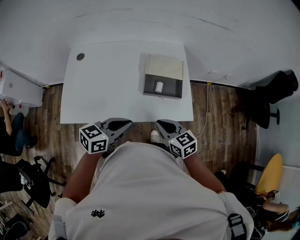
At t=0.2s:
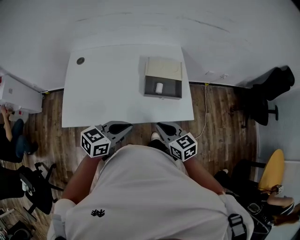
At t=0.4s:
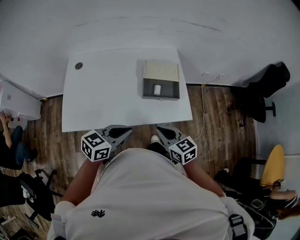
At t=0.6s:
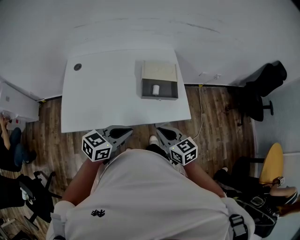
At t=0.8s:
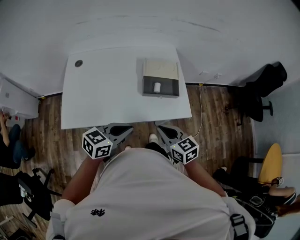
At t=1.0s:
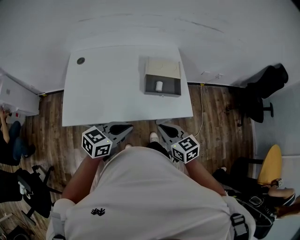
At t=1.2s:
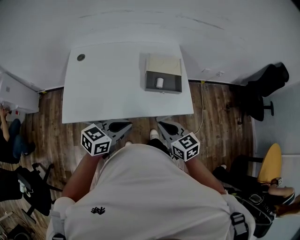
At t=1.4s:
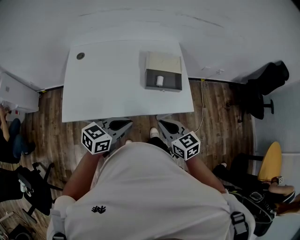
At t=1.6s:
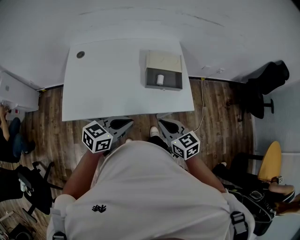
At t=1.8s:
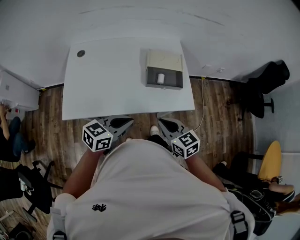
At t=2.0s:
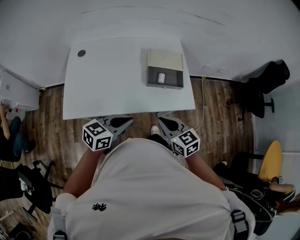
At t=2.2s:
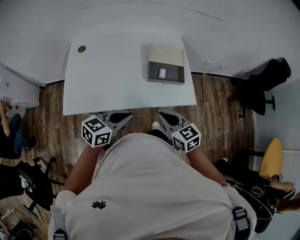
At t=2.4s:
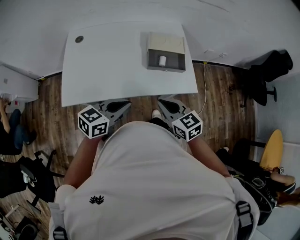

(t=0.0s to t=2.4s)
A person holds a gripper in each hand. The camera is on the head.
t=0.0s - t=1.2s: The right gripper moves approximately 5 cm. The left gripper moves some 5 cm.
t=1.2s - t=2.4s: The grippers make only small movements.

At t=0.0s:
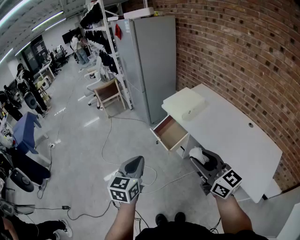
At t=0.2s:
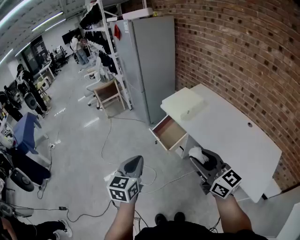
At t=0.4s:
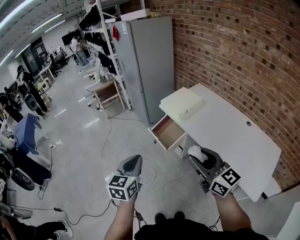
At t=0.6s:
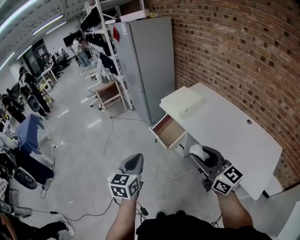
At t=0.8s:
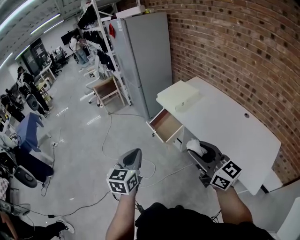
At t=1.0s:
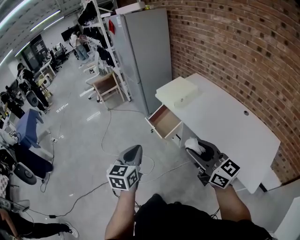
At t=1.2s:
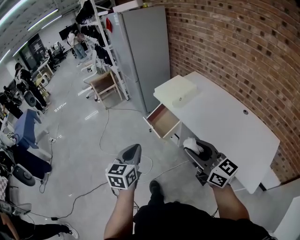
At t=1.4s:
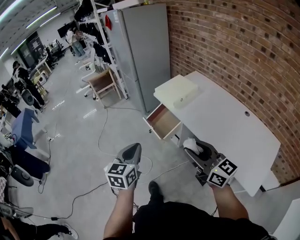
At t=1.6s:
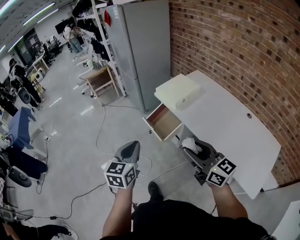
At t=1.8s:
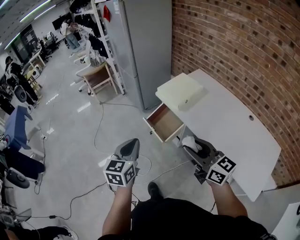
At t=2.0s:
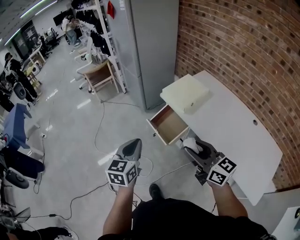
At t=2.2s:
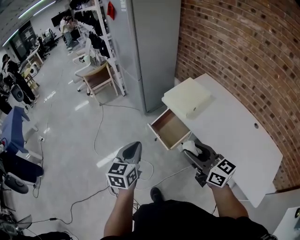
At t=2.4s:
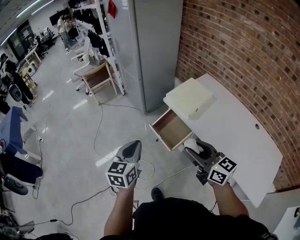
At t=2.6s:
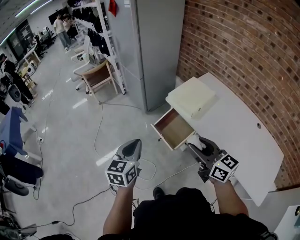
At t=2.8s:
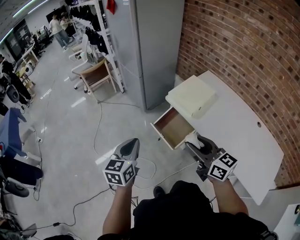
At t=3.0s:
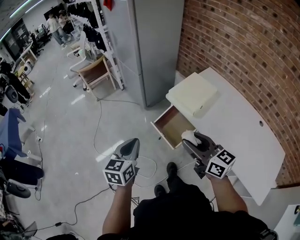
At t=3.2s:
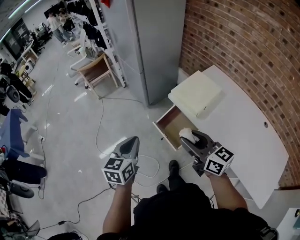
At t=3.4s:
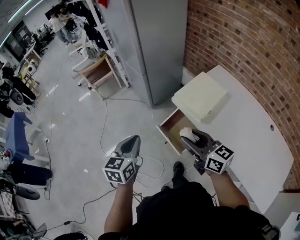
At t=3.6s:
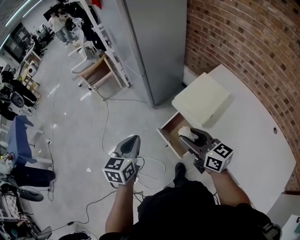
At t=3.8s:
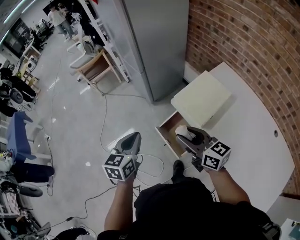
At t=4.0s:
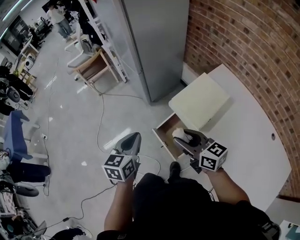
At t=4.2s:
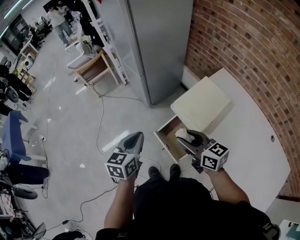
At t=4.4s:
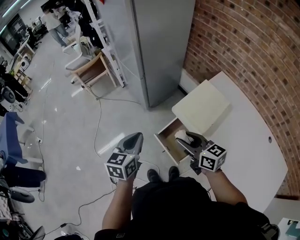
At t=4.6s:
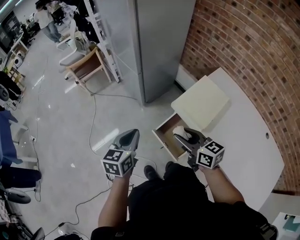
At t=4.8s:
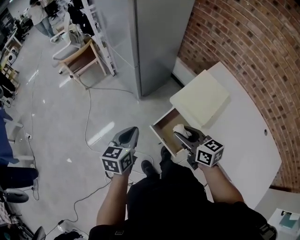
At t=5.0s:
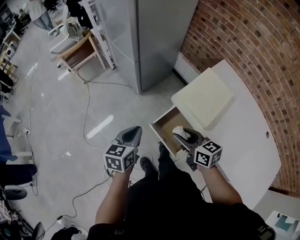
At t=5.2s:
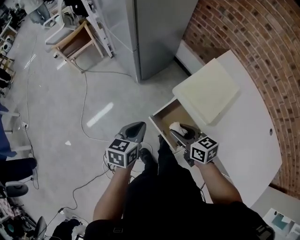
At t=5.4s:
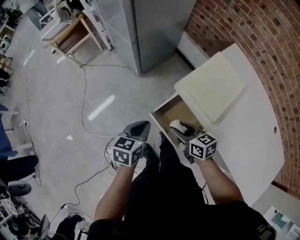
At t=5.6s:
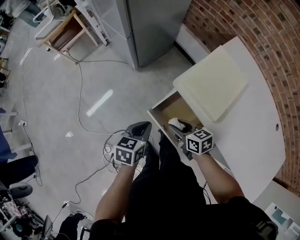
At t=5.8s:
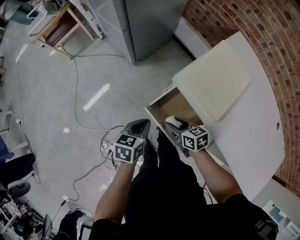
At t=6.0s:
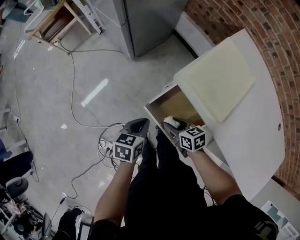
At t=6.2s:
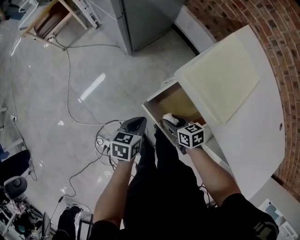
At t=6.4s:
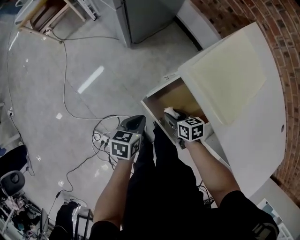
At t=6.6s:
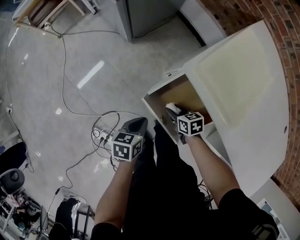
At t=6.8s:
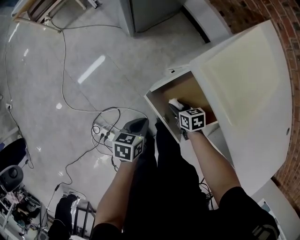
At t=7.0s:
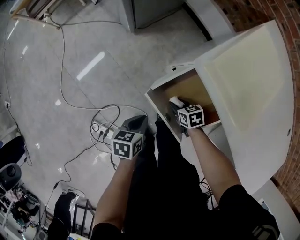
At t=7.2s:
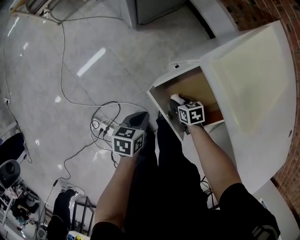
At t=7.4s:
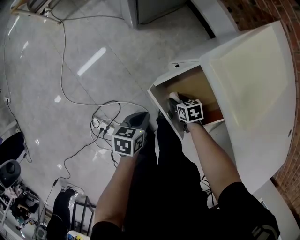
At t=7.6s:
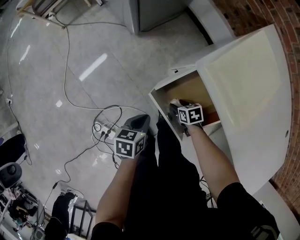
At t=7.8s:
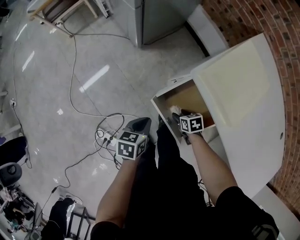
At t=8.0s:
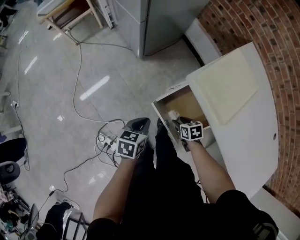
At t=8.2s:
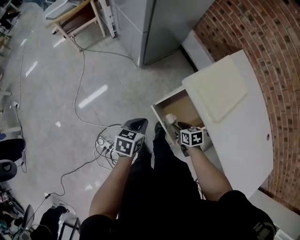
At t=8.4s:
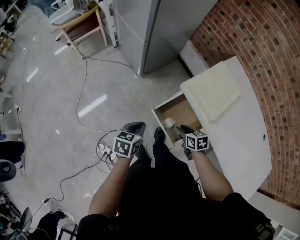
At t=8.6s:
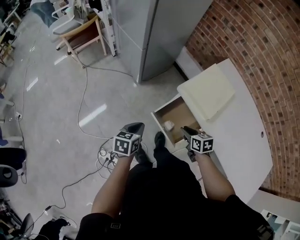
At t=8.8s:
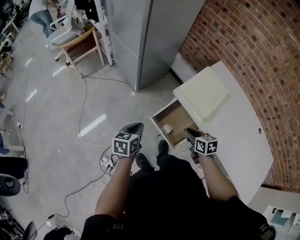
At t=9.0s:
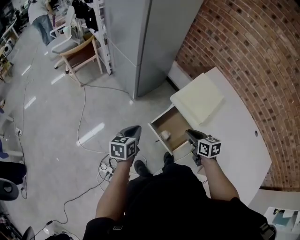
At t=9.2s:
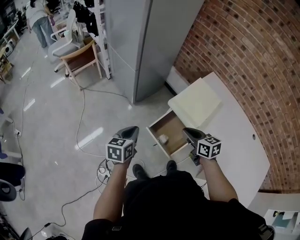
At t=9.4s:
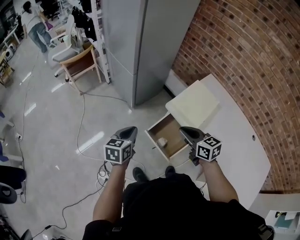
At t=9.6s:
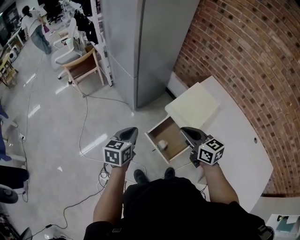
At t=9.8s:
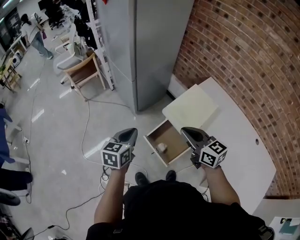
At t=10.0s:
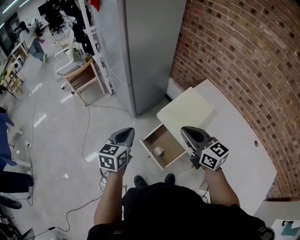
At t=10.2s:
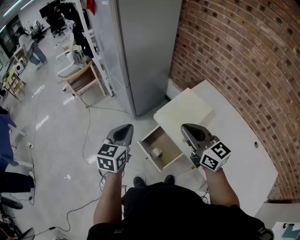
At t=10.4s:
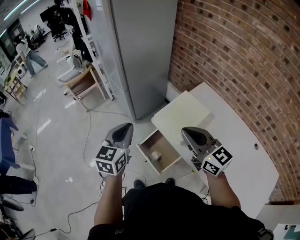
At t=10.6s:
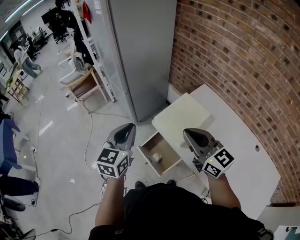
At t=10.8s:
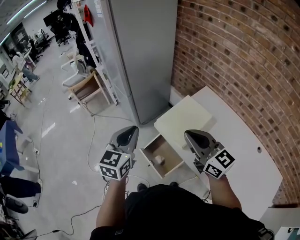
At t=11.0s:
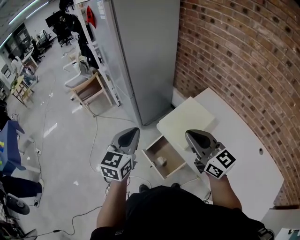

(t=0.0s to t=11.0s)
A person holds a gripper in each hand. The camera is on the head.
t=0.0s - t=1.6s: The right gripper moves roughly 5 cm. Meanwhile the left gripper shifts about 5 cm forward.
t=1.6s - t=3.2s: Both grippers travel together forward, roughly 25 cm.
t=3.2s - t=4.8s: The left gripper goes about 15 cm forward; the right gripper shifts about 20 cm forward and downward.
t=4.8s - t=6.2s: Both grippers travel together downward, approximately 30 cm. The right gripper rotates roughly 30 degrees; the left gripper swivels roughly 30 degrees.
t=6.2s - t=7.8s: The right gripper shifts approximately 10 cm downward. The left gripper goes downward and returns, about 10 cm each way.
t=7.8s - t=9.4s: The left gripper moves upward, about 25 cm, and rotates about 30 degrees; the right gripper heads upward, covering roughly 40 cm, tips its fingers upward by roughly 40 degrees, and closes.
t=9.4s - t=11.0s: The grippers both shift upward and to the right by about 20 cm. The right gripper swivels about 30 degrees. The left gripper rotates about 30 degrees.

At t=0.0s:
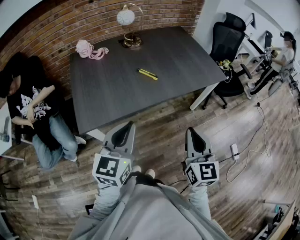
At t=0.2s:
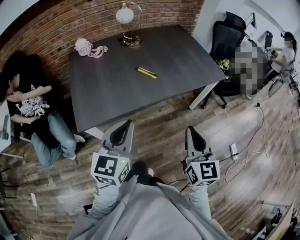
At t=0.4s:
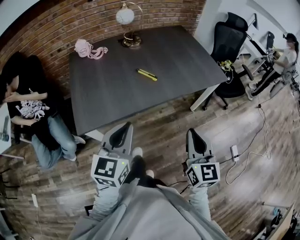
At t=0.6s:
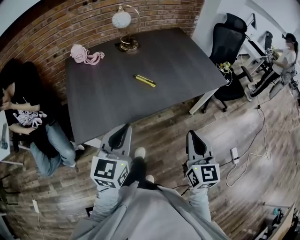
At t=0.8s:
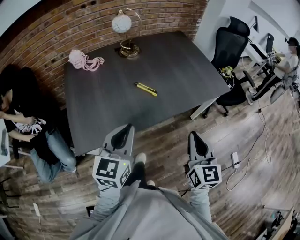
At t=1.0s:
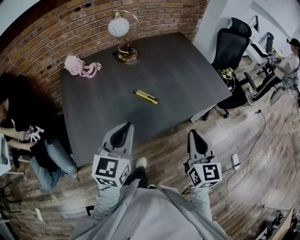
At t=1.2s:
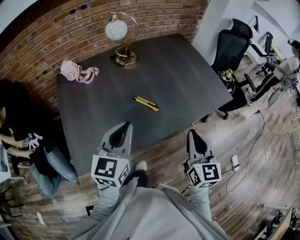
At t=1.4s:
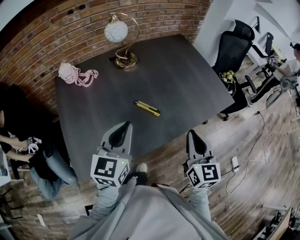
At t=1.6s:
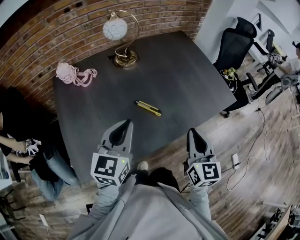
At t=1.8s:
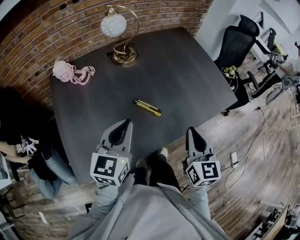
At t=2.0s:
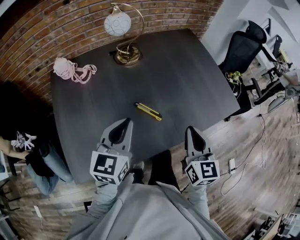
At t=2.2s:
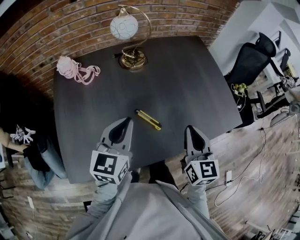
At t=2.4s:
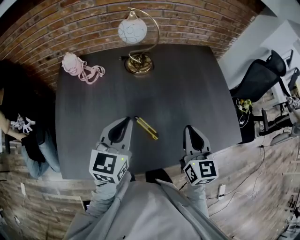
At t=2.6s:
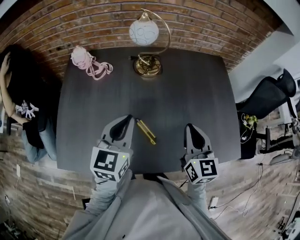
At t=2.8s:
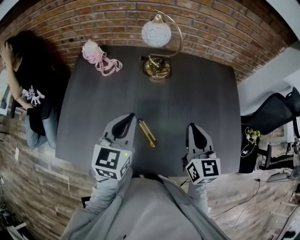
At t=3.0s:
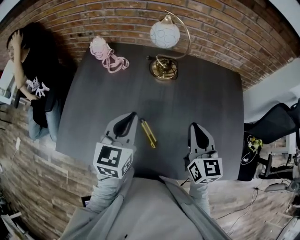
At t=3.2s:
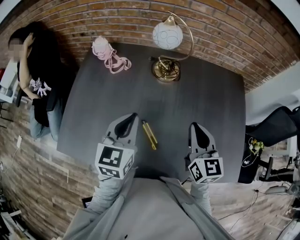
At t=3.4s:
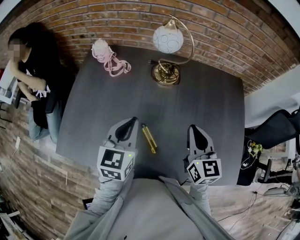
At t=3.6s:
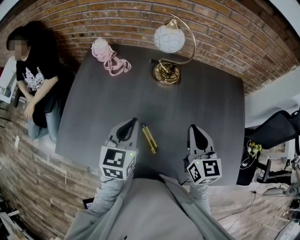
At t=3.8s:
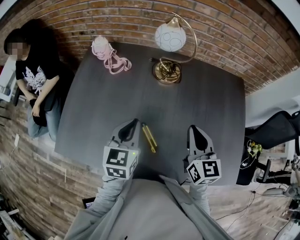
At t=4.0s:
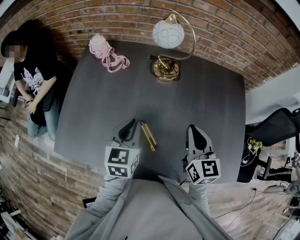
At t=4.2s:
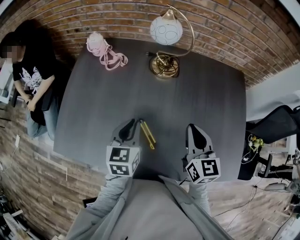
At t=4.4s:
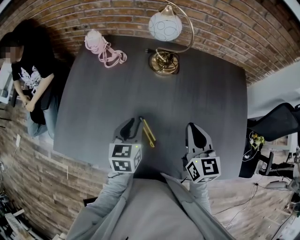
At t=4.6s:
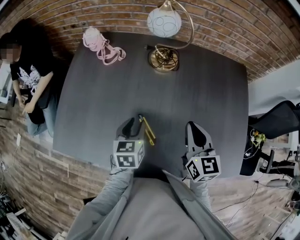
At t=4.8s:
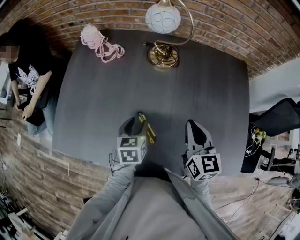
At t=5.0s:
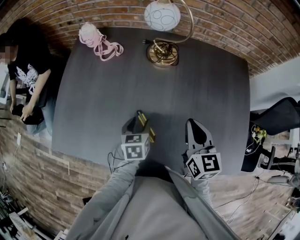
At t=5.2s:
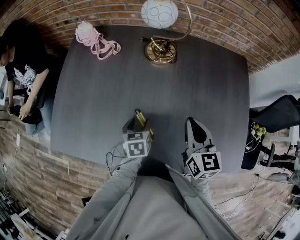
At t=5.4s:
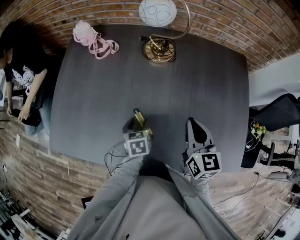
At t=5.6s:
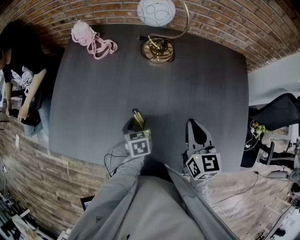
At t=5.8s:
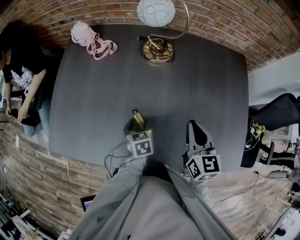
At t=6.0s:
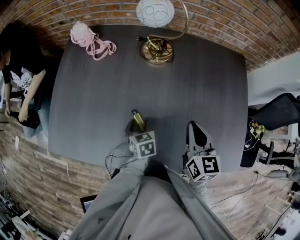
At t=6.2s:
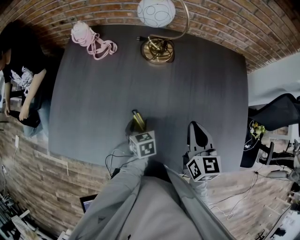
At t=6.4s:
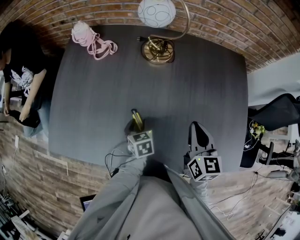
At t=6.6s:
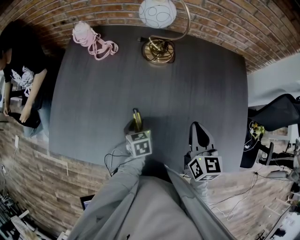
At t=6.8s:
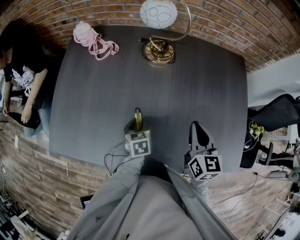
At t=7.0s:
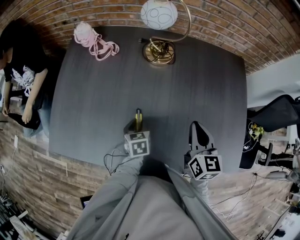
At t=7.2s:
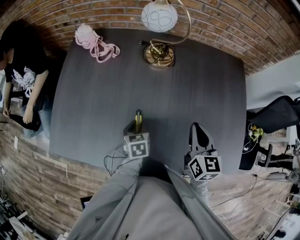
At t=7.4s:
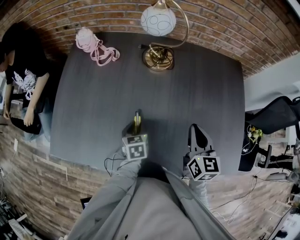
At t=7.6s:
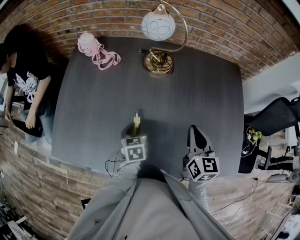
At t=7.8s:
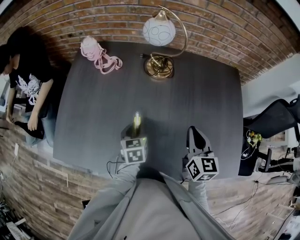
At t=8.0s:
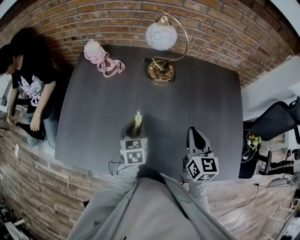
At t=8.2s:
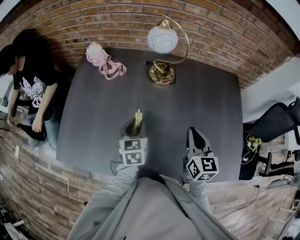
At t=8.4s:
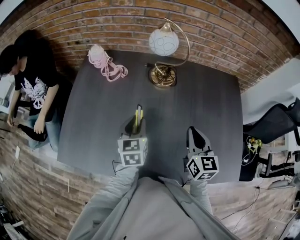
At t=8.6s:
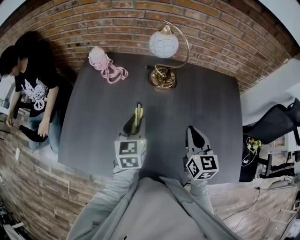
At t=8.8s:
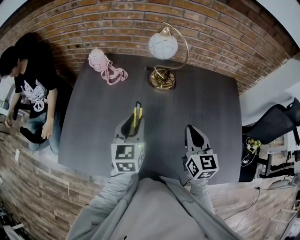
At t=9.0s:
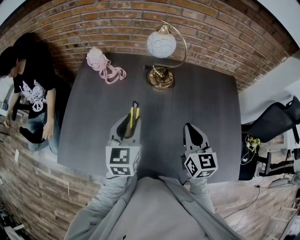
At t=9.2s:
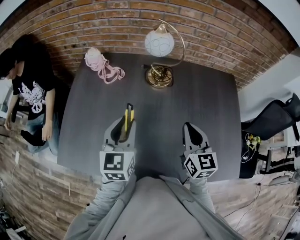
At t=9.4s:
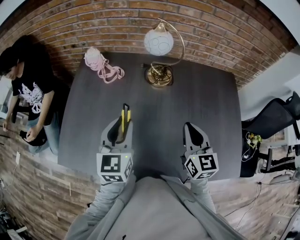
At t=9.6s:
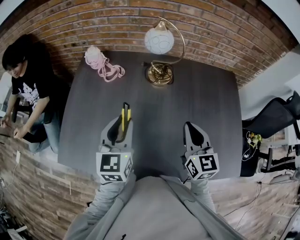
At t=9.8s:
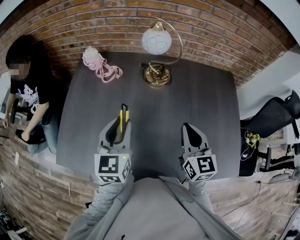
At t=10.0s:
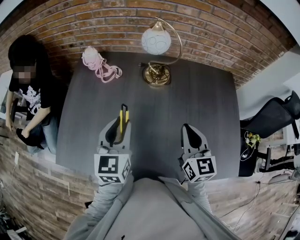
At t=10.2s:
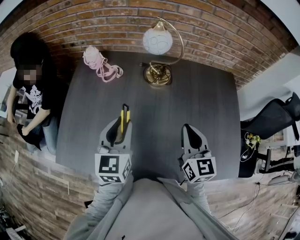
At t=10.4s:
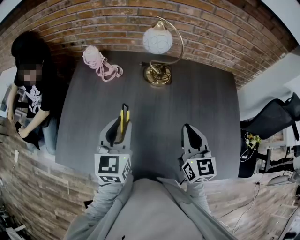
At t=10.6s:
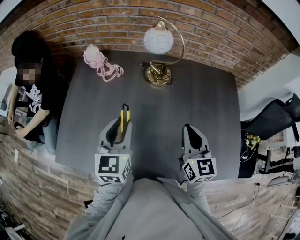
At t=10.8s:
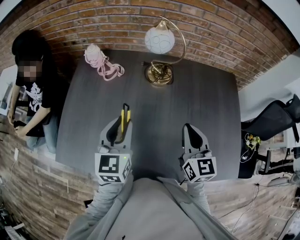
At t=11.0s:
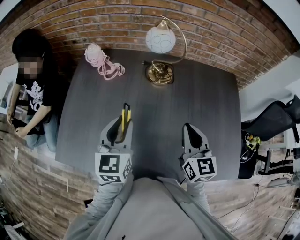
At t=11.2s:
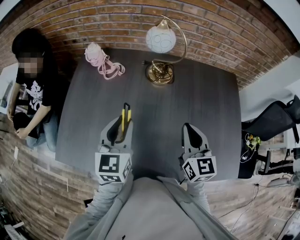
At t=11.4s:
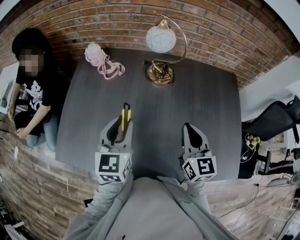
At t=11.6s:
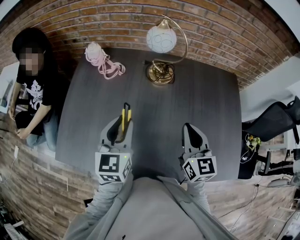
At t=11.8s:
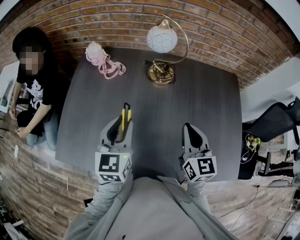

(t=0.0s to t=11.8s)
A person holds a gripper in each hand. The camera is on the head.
t=0.0s - t=1.4s: Both grippers travel together forward, some 25 cm.
t=1.4s - t=3.0s: The left gripper ends up approximately 15 cm from where it was, and swivels approximately 30 degrees; the right gripper changes place by some 30 cm, and rotates approximately 40 degrees.
t=3.0s - t=4.4s: The left gripper travels downward by some 10 cm, and turns by approximately 20 degrees.
t=4.4s - t=6.0s: The left gripper is displaced downward by about 15 cm, swivels roughly 20 degrees, and opens up. The right gripper changes place by approximately 5 cm.
t=6.0s - t=7.4s: The left gripper closes.
t=7.4s - t=8.8s: The left gripper is displaced upward by about 20 cm, and changes its angle by about 30 degrees. The right gripper moves about 5 cm.
t=8.8s - t=10.4s: The left gripper changes place by about 5 cm.
t=10.4s - t=11.8s: Neither gripper changes place.
